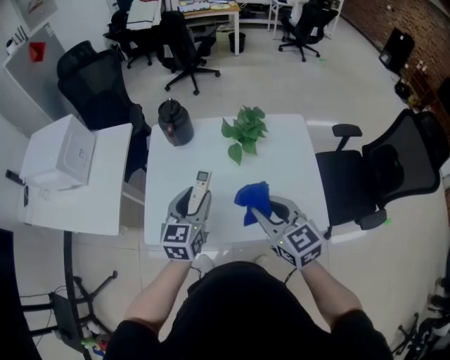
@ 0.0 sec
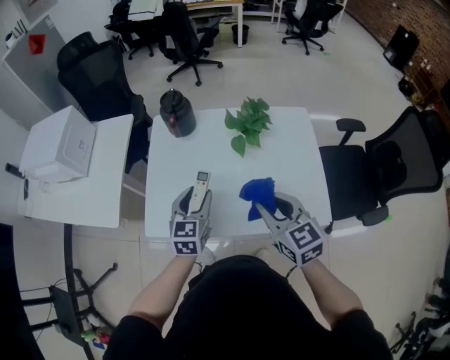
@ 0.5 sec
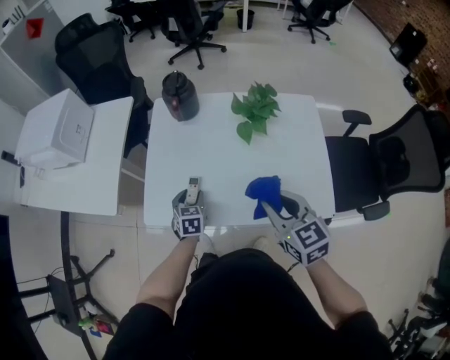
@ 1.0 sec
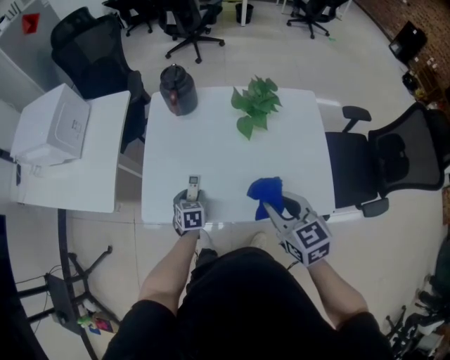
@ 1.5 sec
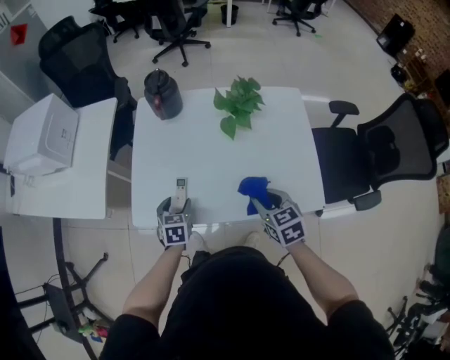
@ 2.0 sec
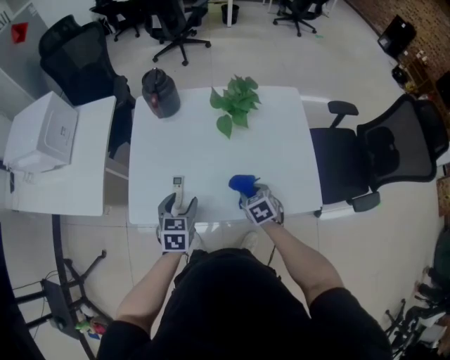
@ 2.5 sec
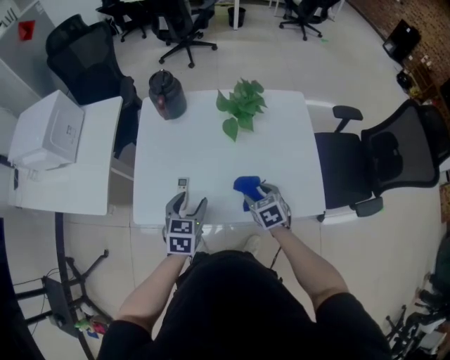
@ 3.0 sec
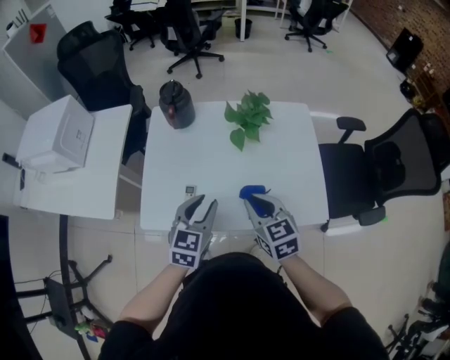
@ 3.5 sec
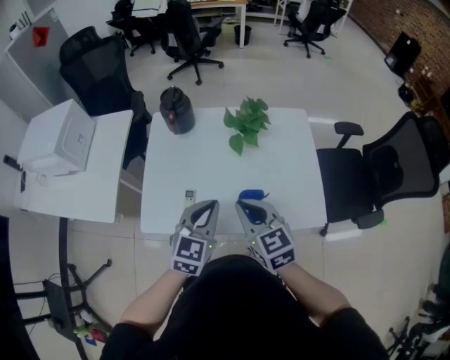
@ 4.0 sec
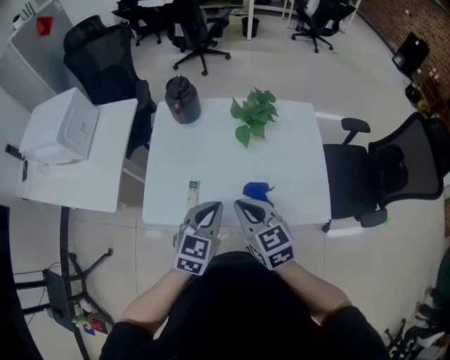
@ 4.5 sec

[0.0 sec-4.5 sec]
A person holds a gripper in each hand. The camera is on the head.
0.0 sec to 2.0 sec: The right gripper shifts approximately 15 cm downward, and changes its angle by about 20 degrees. The left gripper travels downward and to the left by roughly 25 cm, and swivels approximately 30 degrees.
2.0 sec to 4.5 sec: The left gripper goes roughly 20 cm upward and to the right, rotates some 30 degrees, and closes up. Meanwhile the right gripper is displaced upward and to the left by about 15 cm, and closes its fingers.

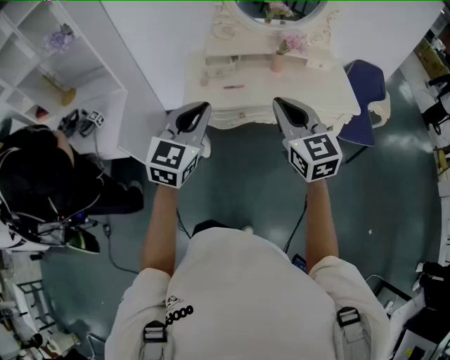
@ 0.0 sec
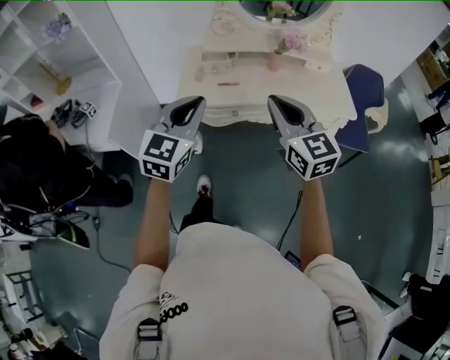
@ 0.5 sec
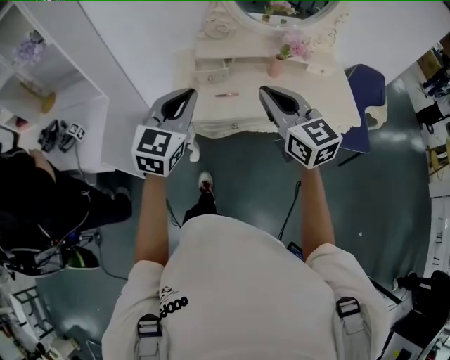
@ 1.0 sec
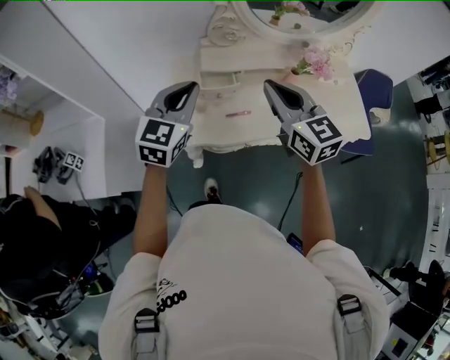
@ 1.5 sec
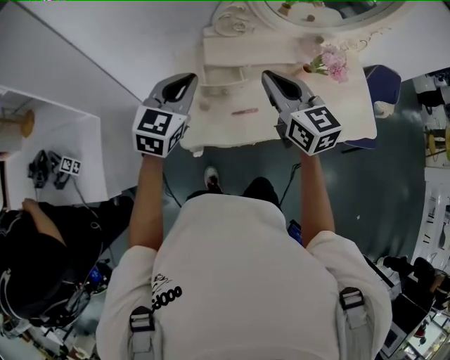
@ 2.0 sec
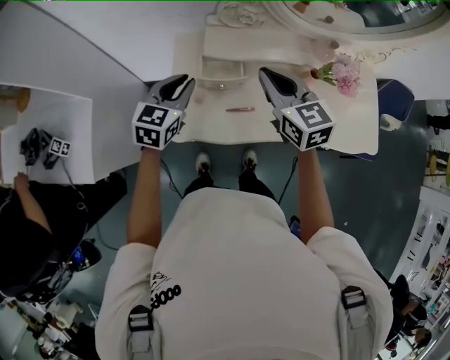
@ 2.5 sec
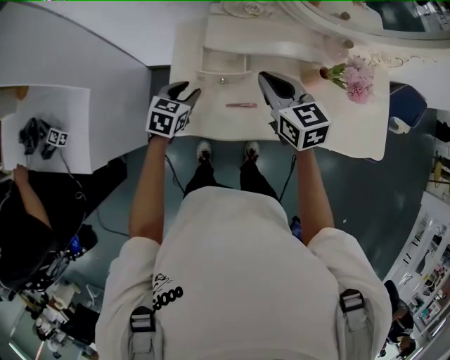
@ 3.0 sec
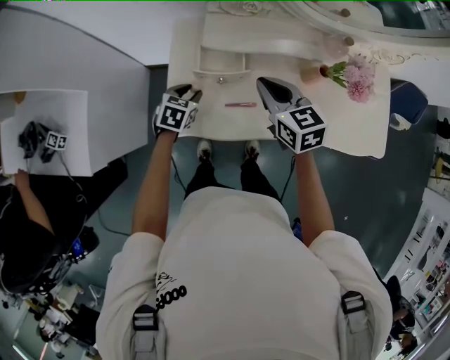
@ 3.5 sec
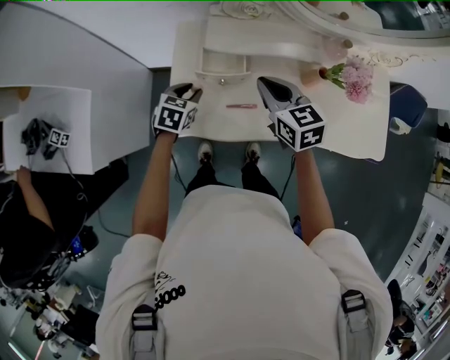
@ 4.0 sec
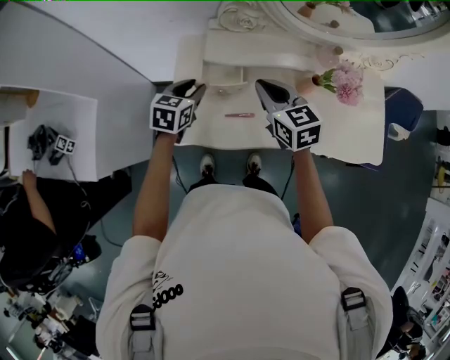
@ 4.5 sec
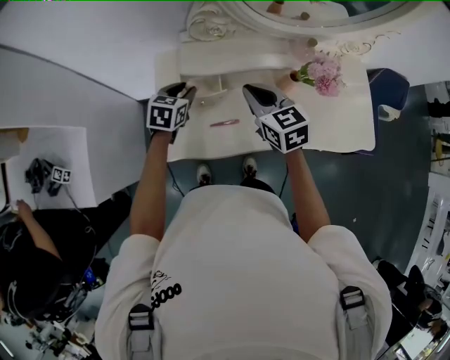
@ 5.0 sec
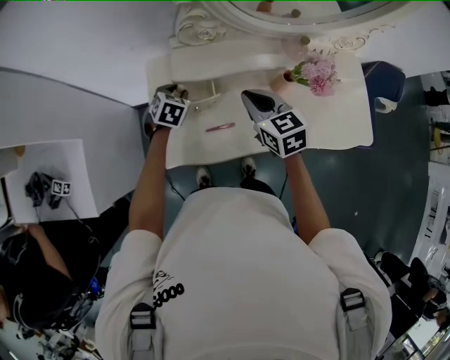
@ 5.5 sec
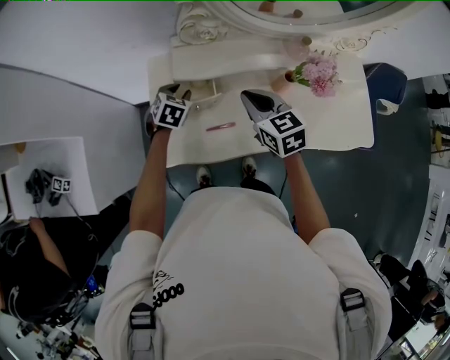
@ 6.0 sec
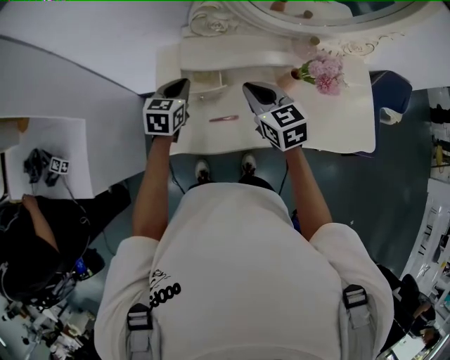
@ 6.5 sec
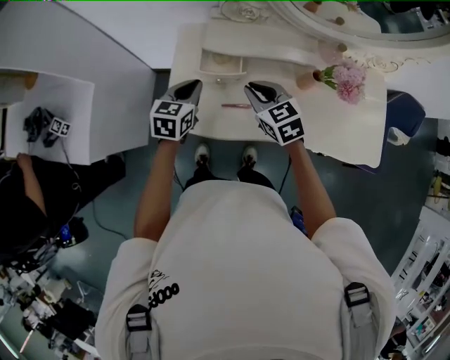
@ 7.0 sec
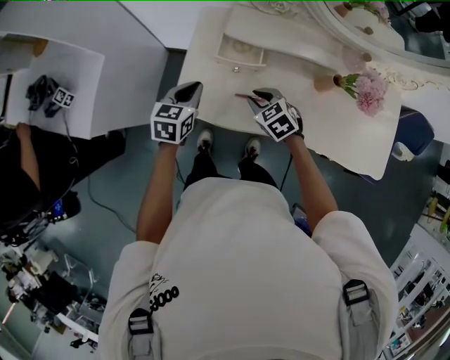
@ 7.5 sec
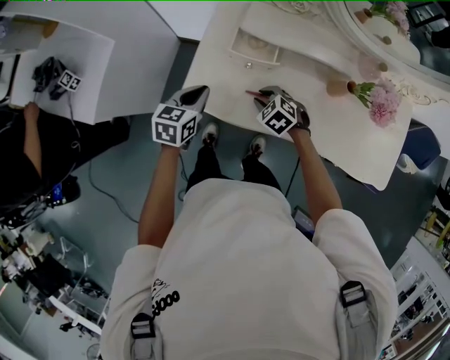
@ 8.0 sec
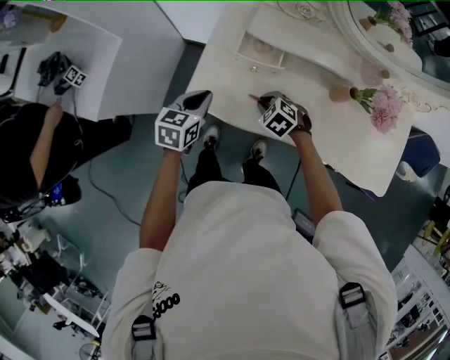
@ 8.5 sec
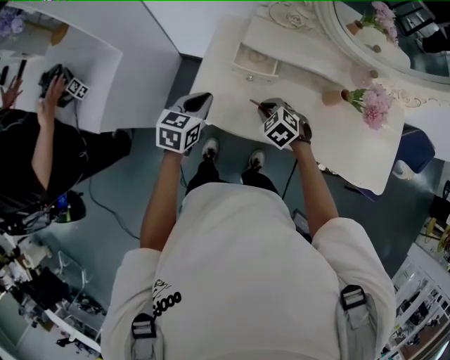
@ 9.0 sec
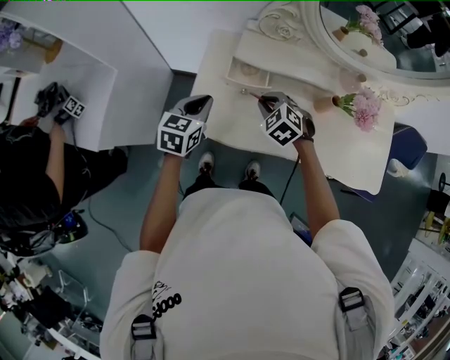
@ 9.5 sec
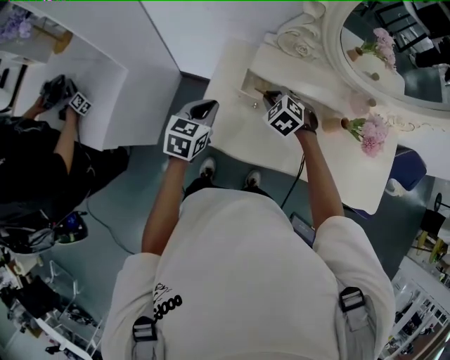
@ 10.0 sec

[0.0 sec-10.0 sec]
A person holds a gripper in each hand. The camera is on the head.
0.0 sec to 2.0 sec: The two grippers go about 40 cm forward.
2.0 sec to 4.0 sec: The left gripper is displaced downward by approximately 25 cm, tilts its fingers some 30 degrees downward, and opens up. Meanwhile the right gripper shifts approximately 15 cm downward.
4.0 sec to 6.0 sec: The left gripper is displaced forward and to the right by about 10 cm.
6.0 sec to 8.0 sec: The right gripper moves downward and to the left, some 25 cm, tilts its fingers approximately 30 degrees downward, and opens. The left gripper goes some 20 cm backward and to the left, turns by roughly 40 degrees, and closes its fingers.
8.0 sec to 10.0 sec: The right gripper travels forward and upward by some 15 cm, while the left gripper shifts roughly 10 cm forward and upward.

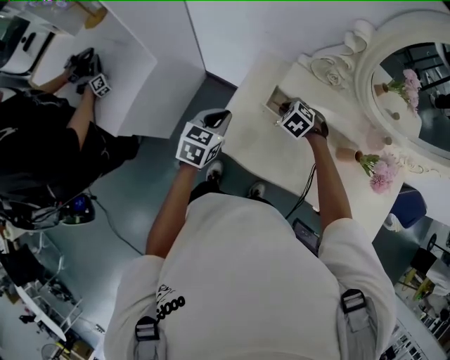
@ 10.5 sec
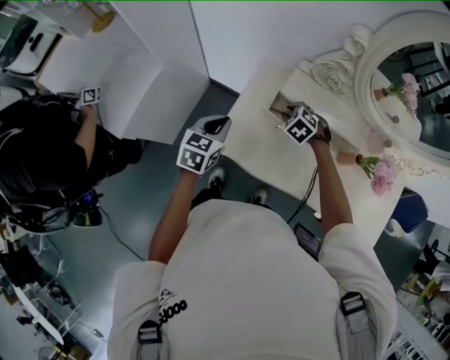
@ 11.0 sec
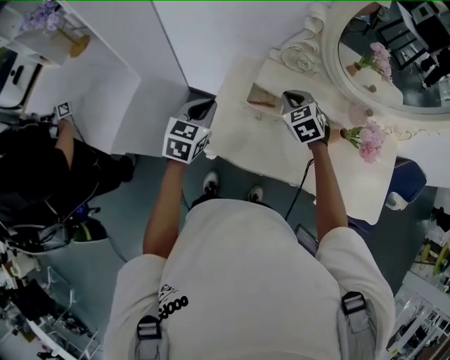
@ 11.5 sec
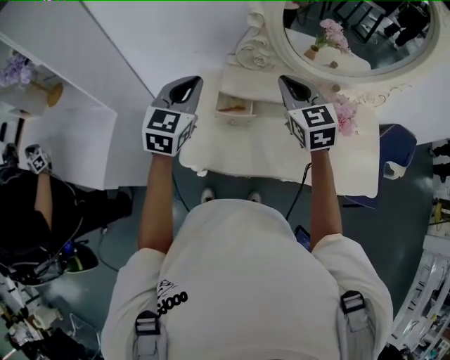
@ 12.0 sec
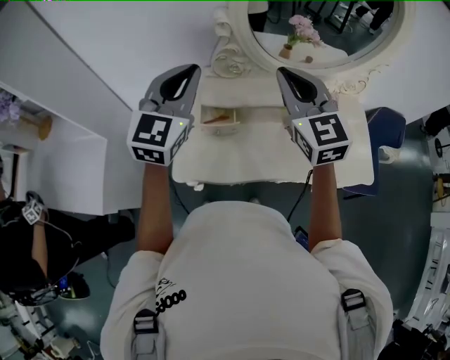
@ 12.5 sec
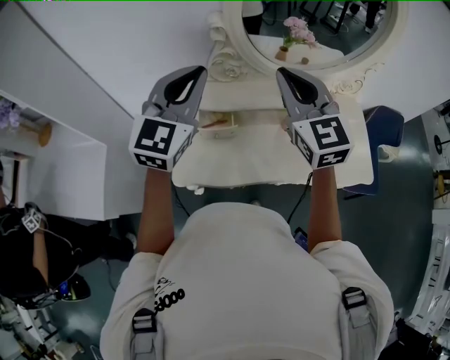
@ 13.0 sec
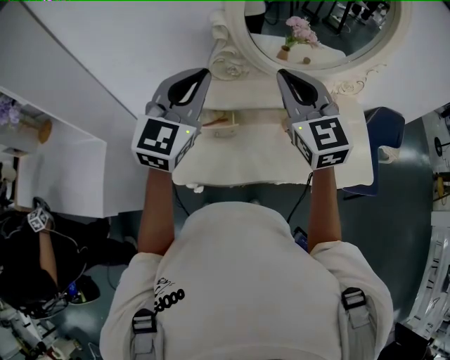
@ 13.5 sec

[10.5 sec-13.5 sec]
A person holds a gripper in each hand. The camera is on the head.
10.5 sec to 12.0 sec: The right gripper is displaced upward by approximately 30 cm, and tips its fingers upward by approximately 50 degrees. Meanwhile the left gripper moves upward, approximately 20 cm, and turns by about 30 degrees.
12.0 sec to 13.5 sec: The left gripper heads upward and to the right, covering some 15 cm. The right gripper is displaced upward by roughly 10 cm.

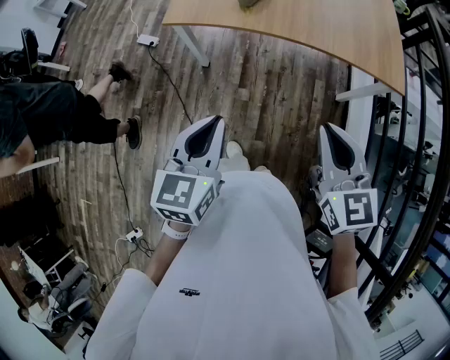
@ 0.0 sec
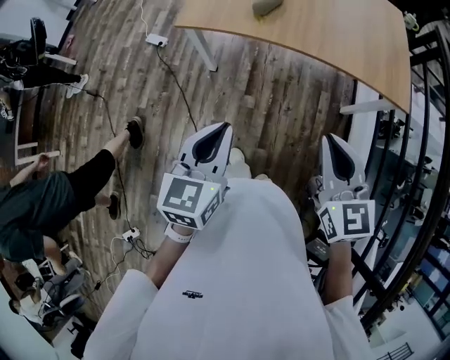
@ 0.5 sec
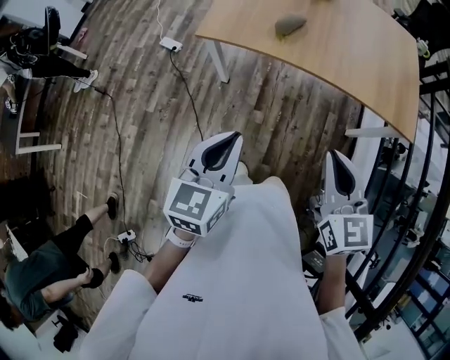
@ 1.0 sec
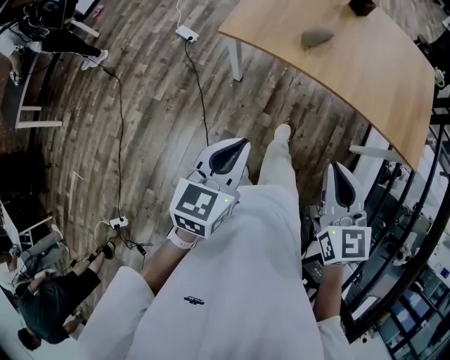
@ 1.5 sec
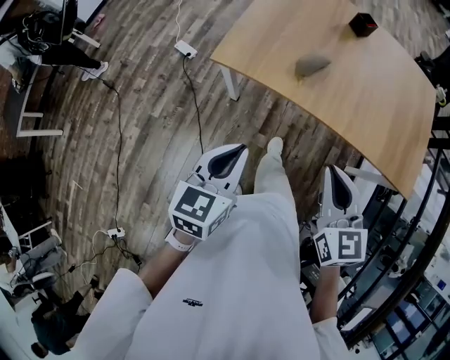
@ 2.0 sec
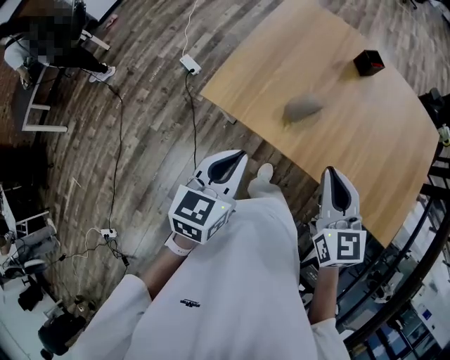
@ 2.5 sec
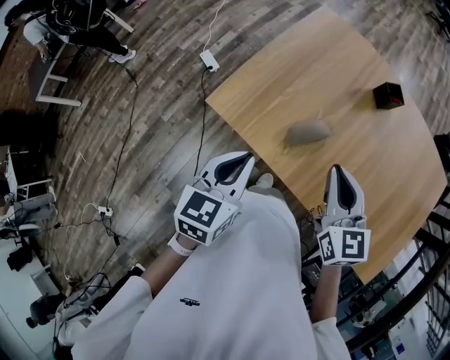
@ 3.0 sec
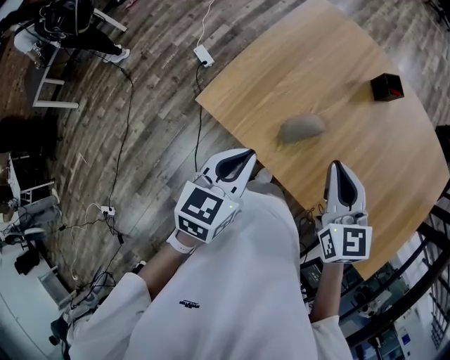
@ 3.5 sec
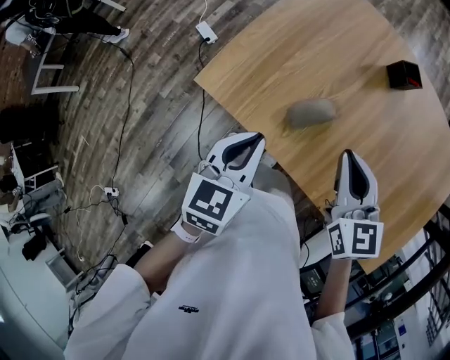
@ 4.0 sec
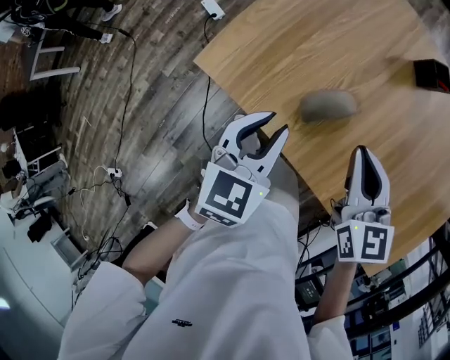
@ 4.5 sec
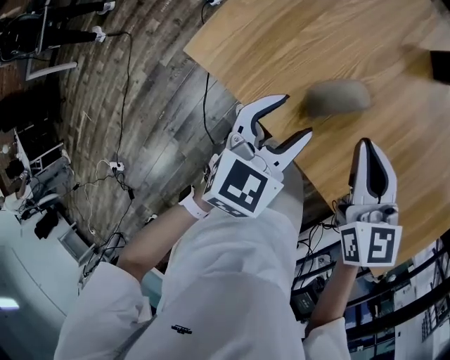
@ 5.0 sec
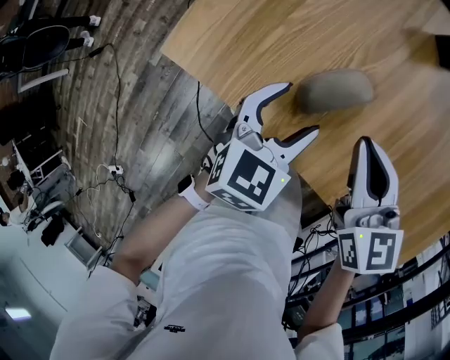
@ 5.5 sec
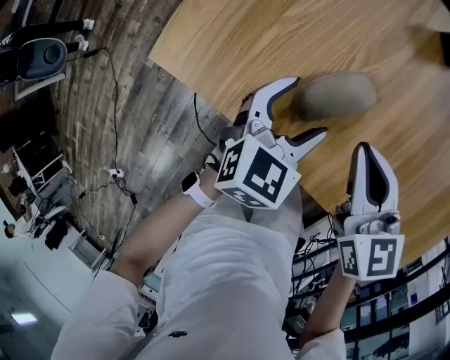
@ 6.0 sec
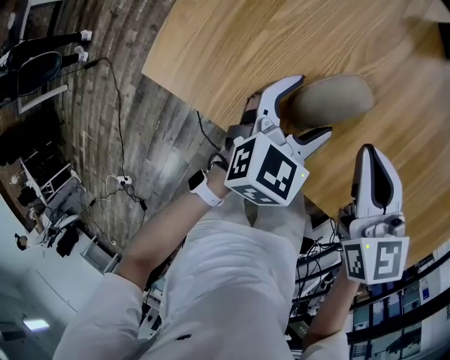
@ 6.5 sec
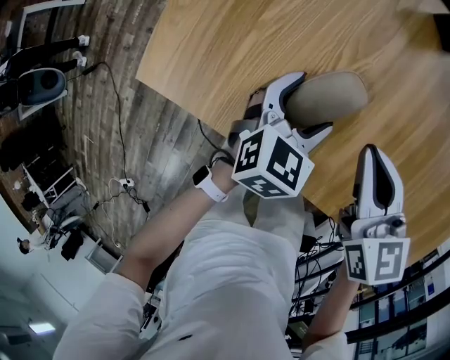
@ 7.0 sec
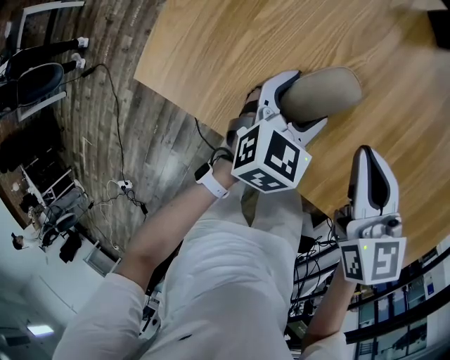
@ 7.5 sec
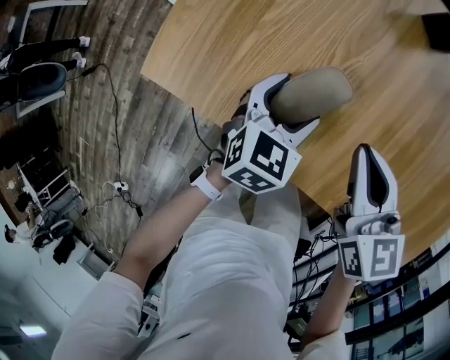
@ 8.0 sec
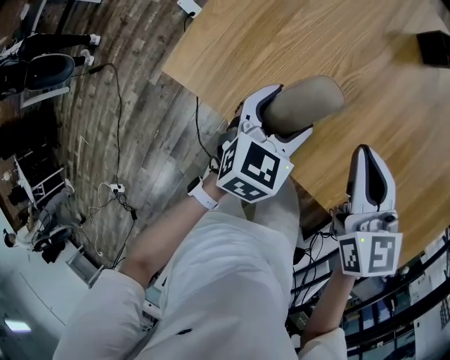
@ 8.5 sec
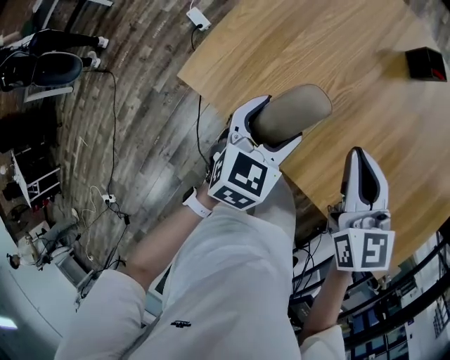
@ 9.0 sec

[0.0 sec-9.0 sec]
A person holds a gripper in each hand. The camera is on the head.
0.0 sec to 2.0 sec: Both grippers travel together forward, approximately 20 cm.
2.0 sec to 4.5 sec: The right gripper heads forward, covering some 35 cm; the left gripper is displaced forward and to the right by approximately 35 cm.
4.5 sec to 7.0 sec: The left gripper shifts roughly 25 cm downward and to the right, changes its angle by about 30 degrees, and opens its fingers. The right gripper is displaced downward by about 15 cm.
7.0 sec to 9.0 sec: The left gripper heads upward and to the left, covering approximately 15 cm. Meanwhile the right gripper shifts about 10 cm upward.
